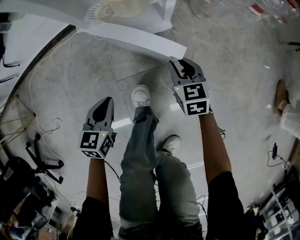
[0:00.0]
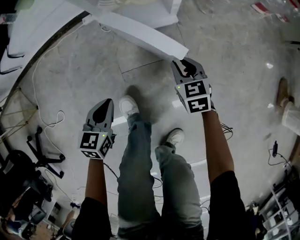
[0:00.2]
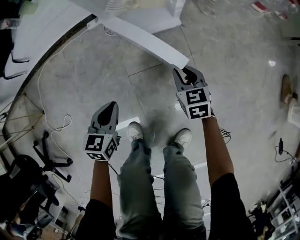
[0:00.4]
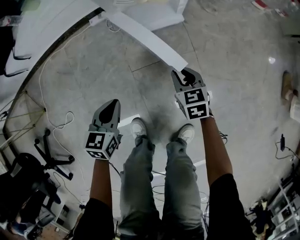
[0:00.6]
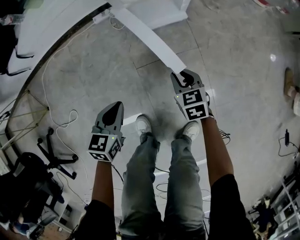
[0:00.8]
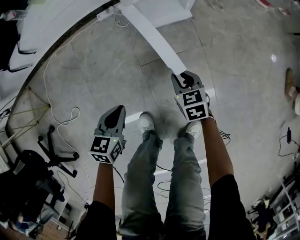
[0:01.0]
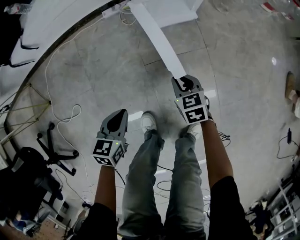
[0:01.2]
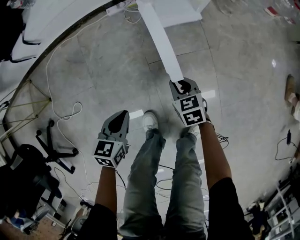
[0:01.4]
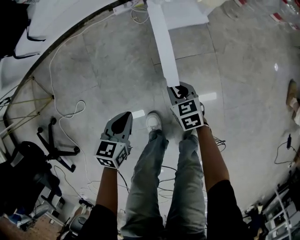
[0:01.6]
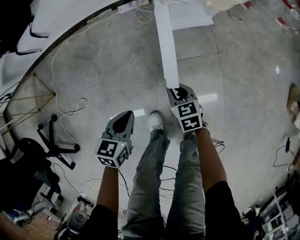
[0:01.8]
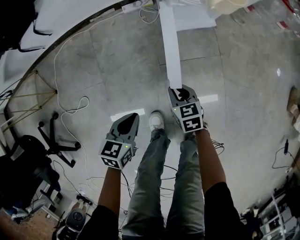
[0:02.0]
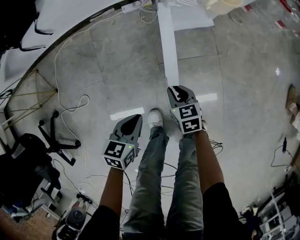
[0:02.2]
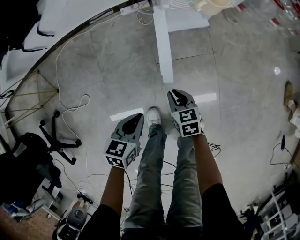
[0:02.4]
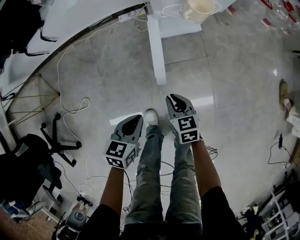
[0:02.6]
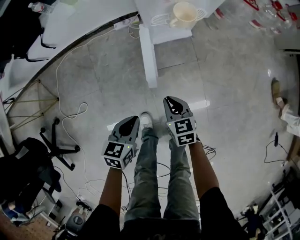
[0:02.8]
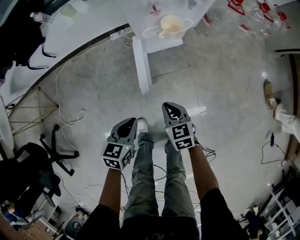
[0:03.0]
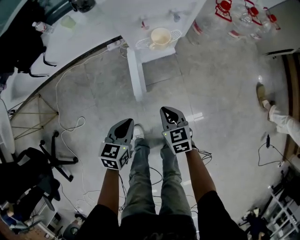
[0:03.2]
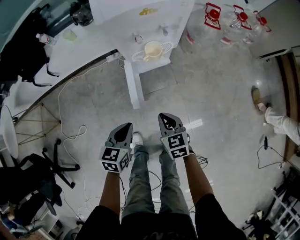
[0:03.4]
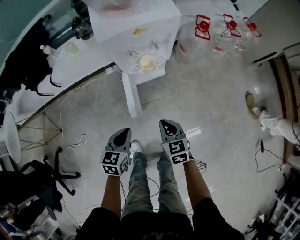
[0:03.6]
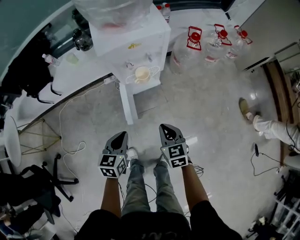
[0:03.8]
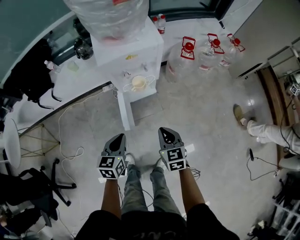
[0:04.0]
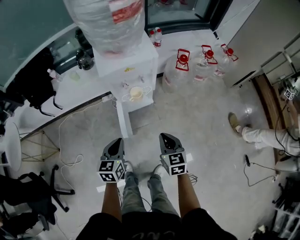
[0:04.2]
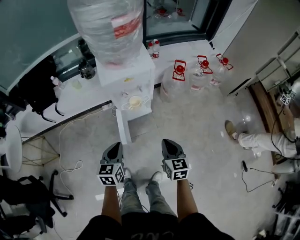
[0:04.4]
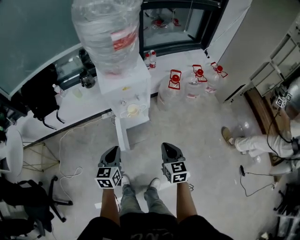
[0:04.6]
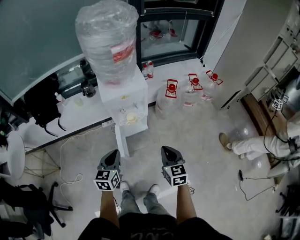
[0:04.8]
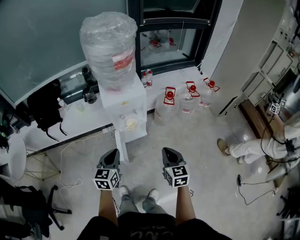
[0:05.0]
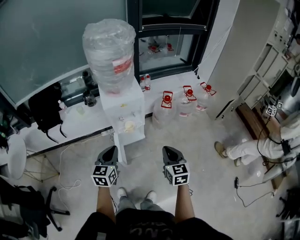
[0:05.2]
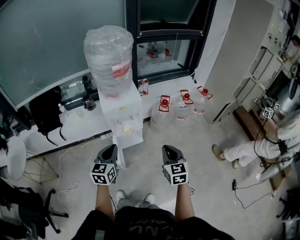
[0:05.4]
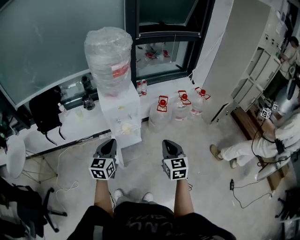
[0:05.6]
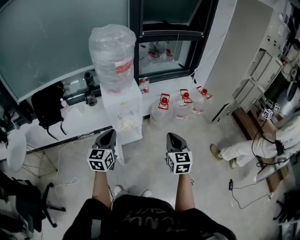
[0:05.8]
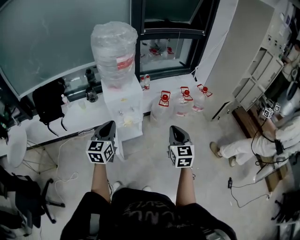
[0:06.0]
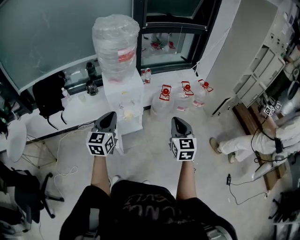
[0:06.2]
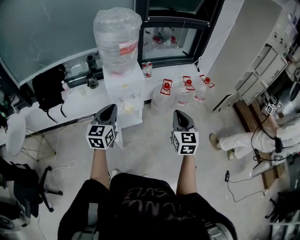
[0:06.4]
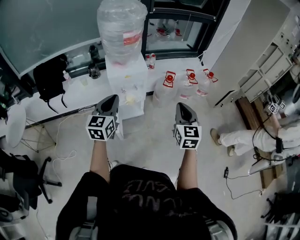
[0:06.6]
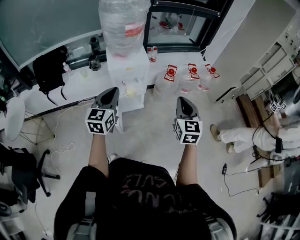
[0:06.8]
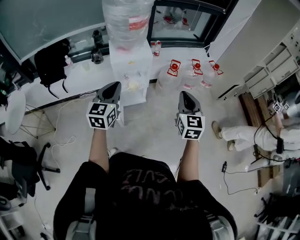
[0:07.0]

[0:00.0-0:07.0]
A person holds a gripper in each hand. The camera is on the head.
0.0 to 1.4 s: The left gripper heads backward and to the left, covering roughly 20 cm. Meanwhile the right gripper travels to the left and backward by some 25 cm.
1.4 to 2.8 s: The left gripper is displaced upward and to the right by some 15 cm; the right gripper heads upward, covering some 15 cm.
2.8 to 4.2 s: The right gripper is displaced upward and to the right by some 40 cm. The left gripper heads upward, covering approximately 30 cm.
4.2 to 5.6 s: The right gripper goes approximately 25 cm upward and to the right, while the left gripper shifts some 25 cm upward, and changes its angle by approximately 20 degrees.
5.6 to 7.0 s: The grippers both shift upward by roughly 5 cm.

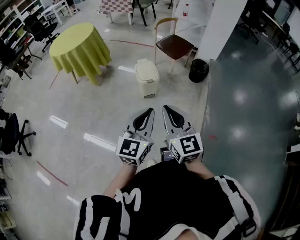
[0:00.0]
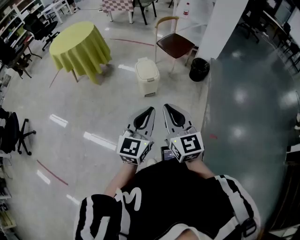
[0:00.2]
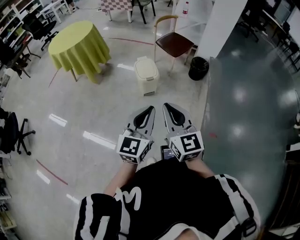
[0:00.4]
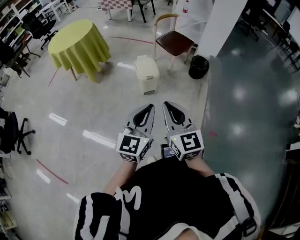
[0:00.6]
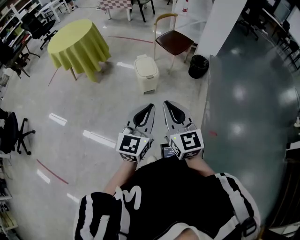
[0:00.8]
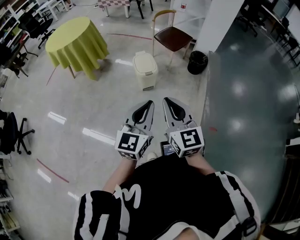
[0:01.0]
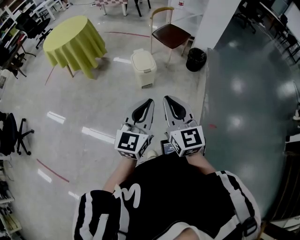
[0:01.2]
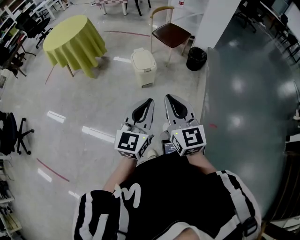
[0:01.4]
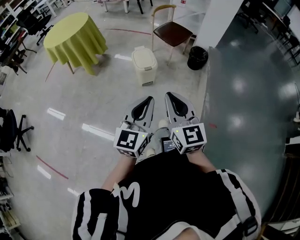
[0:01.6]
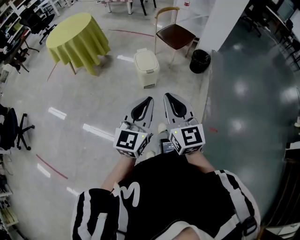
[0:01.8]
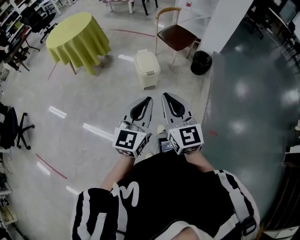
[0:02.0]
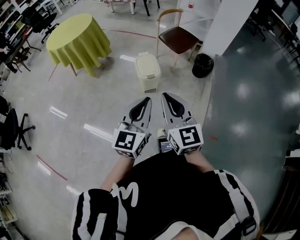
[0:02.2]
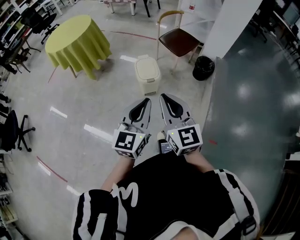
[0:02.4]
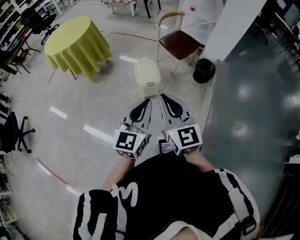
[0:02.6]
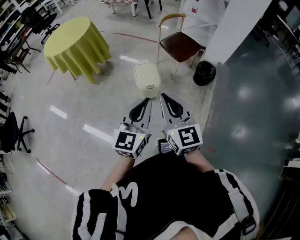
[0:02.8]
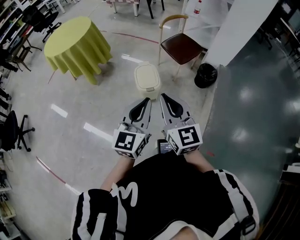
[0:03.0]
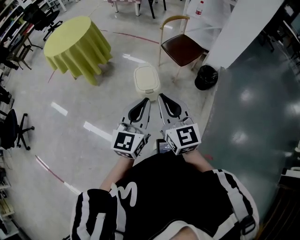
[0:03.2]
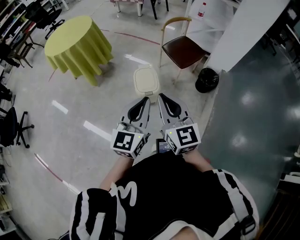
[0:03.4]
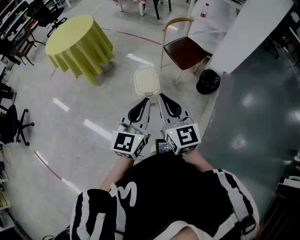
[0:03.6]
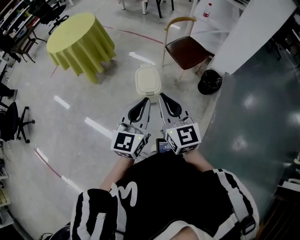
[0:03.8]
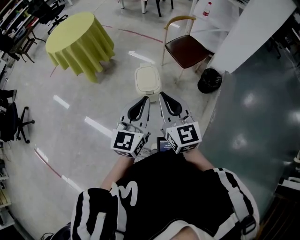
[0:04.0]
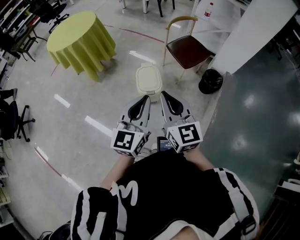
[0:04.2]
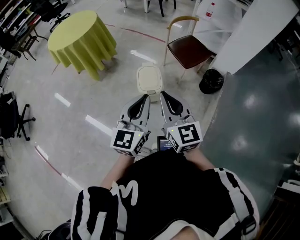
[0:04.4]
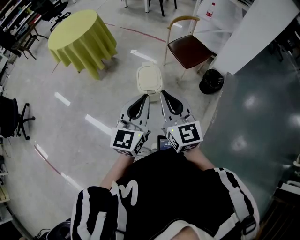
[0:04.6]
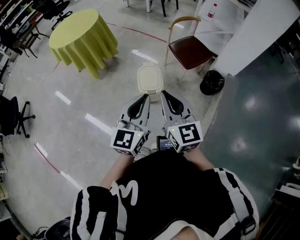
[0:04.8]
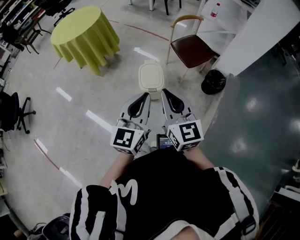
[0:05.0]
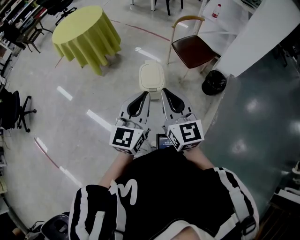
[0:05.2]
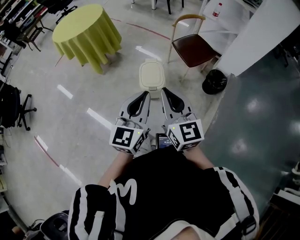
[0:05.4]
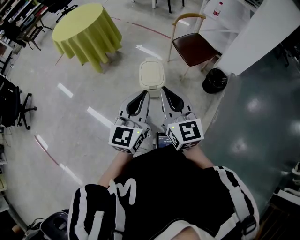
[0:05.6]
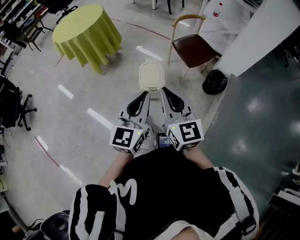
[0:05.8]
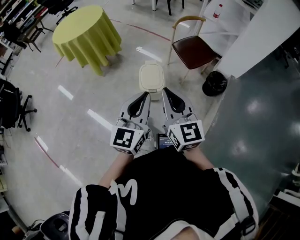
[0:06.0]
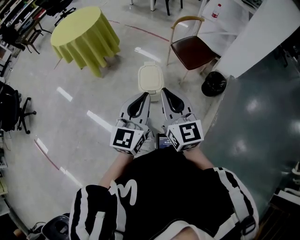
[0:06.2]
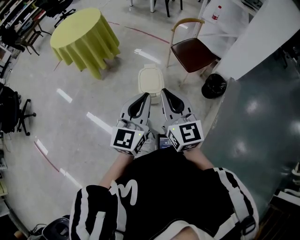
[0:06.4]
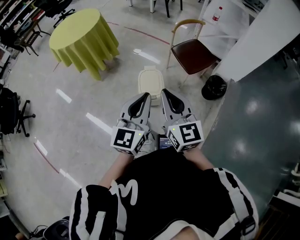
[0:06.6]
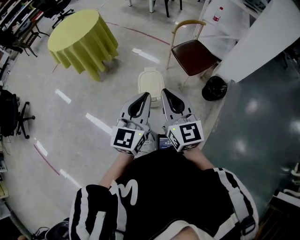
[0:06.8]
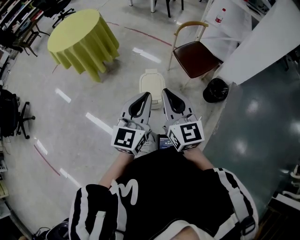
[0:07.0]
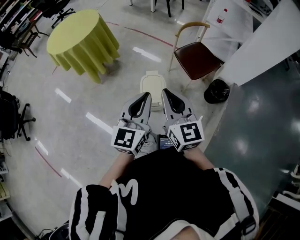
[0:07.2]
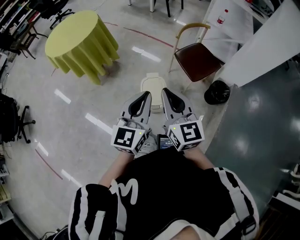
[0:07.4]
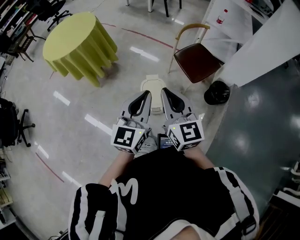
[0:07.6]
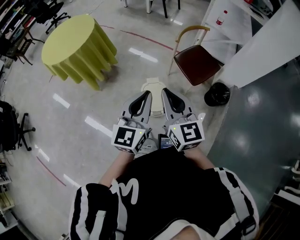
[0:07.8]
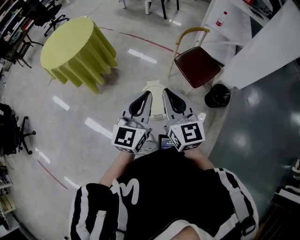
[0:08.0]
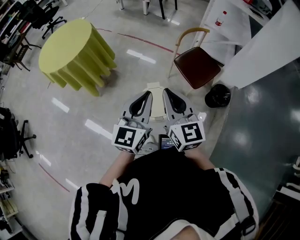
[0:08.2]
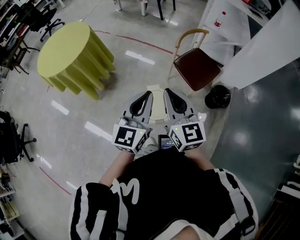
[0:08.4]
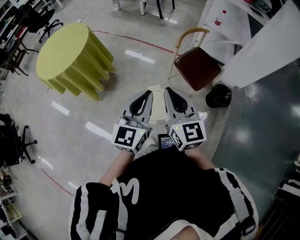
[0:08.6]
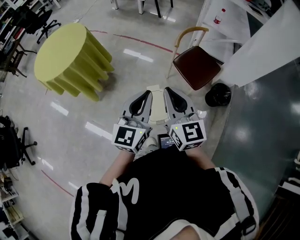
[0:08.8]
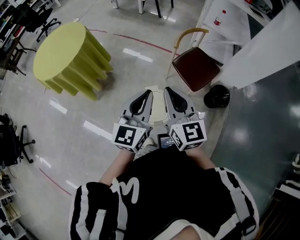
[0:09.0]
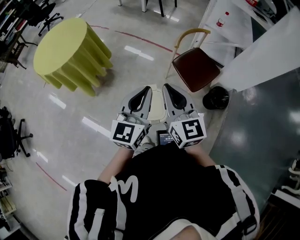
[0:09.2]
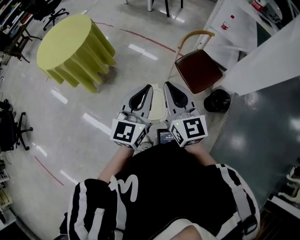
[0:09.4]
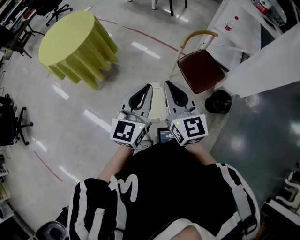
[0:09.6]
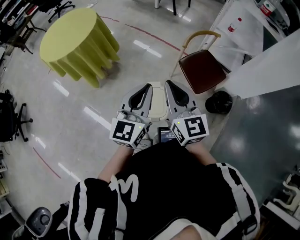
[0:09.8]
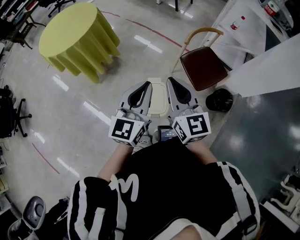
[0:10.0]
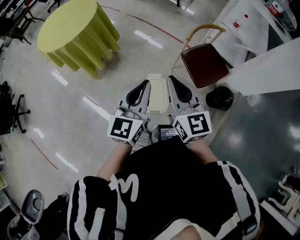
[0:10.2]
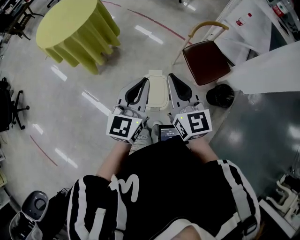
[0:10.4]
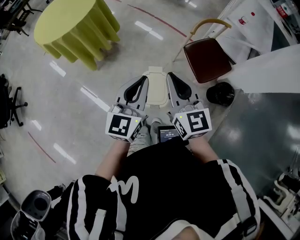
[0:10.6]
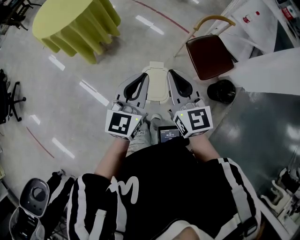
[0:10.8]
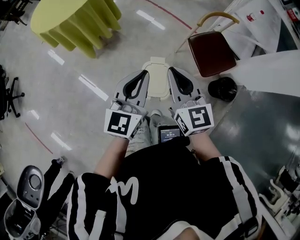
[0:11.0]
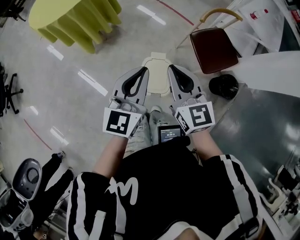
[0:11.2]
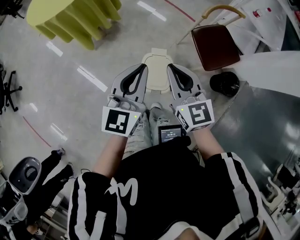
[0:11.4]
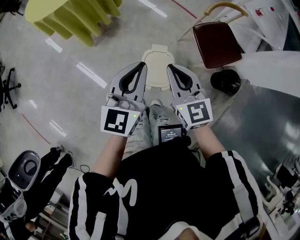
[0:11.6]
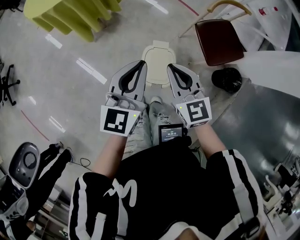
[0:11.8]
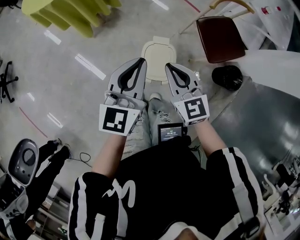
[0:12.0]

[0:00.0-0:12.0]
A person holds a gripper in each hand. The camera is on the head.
0.0 to 1.6 s: Both grippers stay put.
1.6 to 3.0 s: Both grippers move forward, approximately 25 cm.
3.0 to 4.4 s: Both grippers travel together forward, approximately 5 cm.
4.4 to 6.0 s: The grippers stay close to where they were, moving slightly.
6.0 to 7.6 s: The two grippers go approximately 20 cm forward.
7.6 to 9.0 s: Both grippers move forward, some 15 cm.
9.0 to 10.4 s: The grippers make only small movements.
10.4 to 12.0 s: The left gripper travels downward by roughly 10 cm. Meanwhile the right gripper goes approximately 20 cm downward, and changes its angle by some 20 degrees.

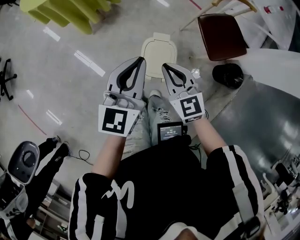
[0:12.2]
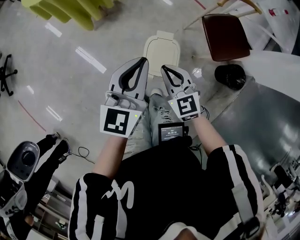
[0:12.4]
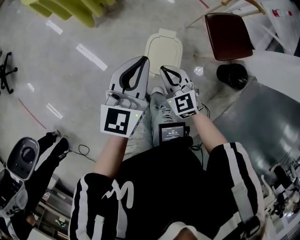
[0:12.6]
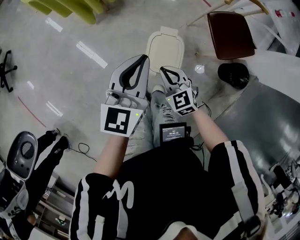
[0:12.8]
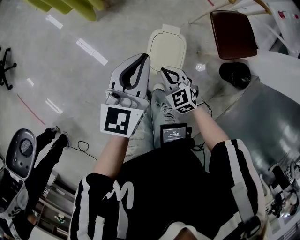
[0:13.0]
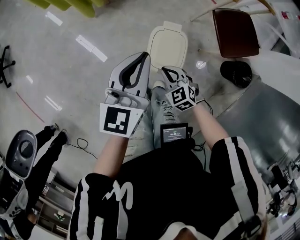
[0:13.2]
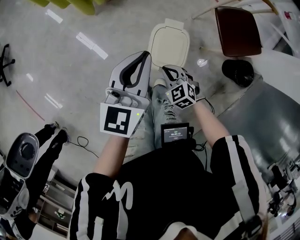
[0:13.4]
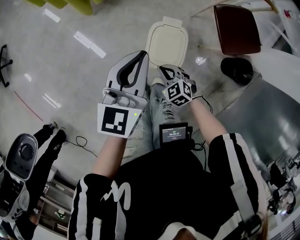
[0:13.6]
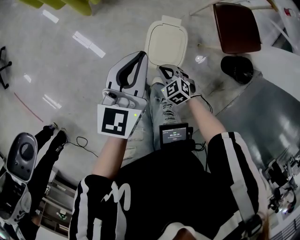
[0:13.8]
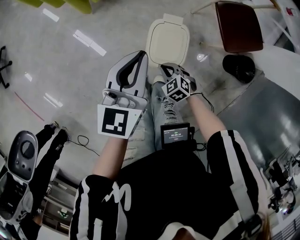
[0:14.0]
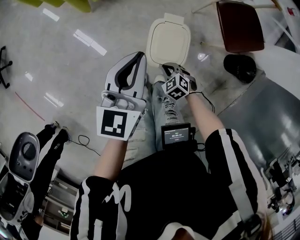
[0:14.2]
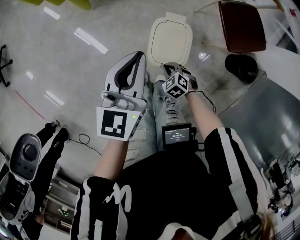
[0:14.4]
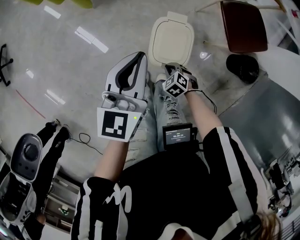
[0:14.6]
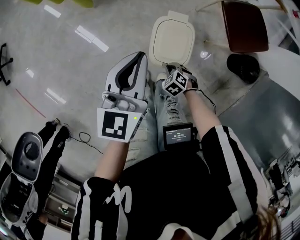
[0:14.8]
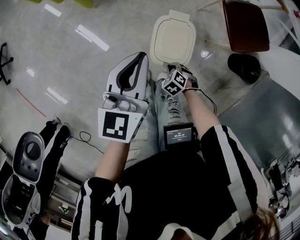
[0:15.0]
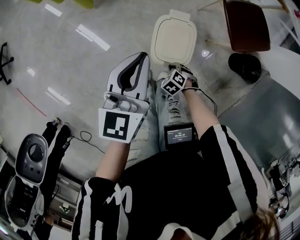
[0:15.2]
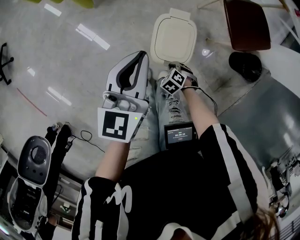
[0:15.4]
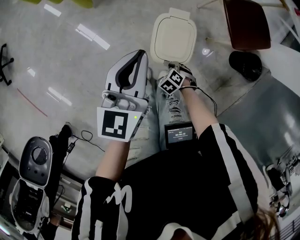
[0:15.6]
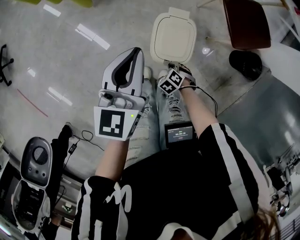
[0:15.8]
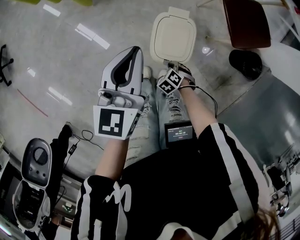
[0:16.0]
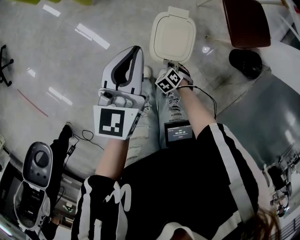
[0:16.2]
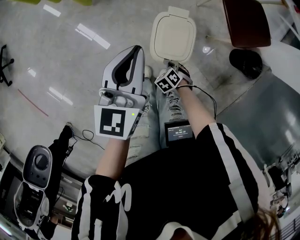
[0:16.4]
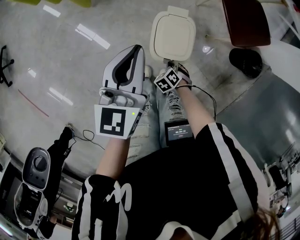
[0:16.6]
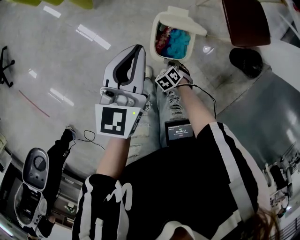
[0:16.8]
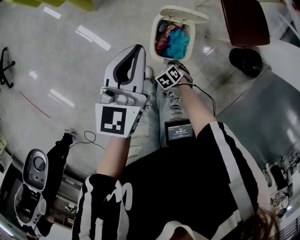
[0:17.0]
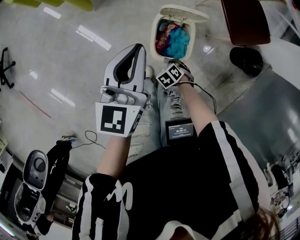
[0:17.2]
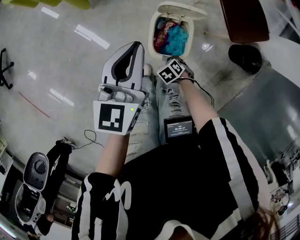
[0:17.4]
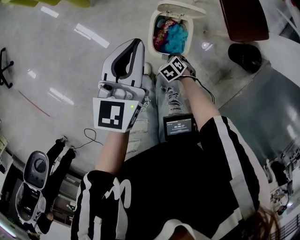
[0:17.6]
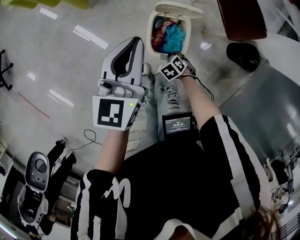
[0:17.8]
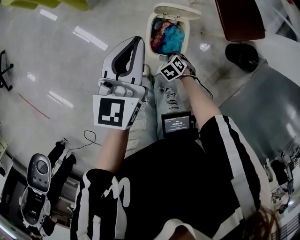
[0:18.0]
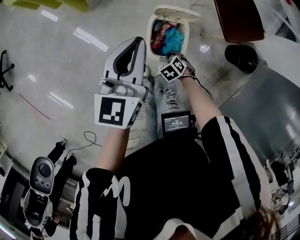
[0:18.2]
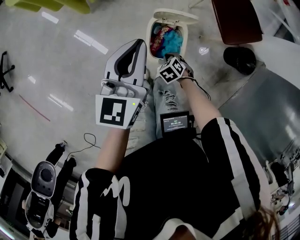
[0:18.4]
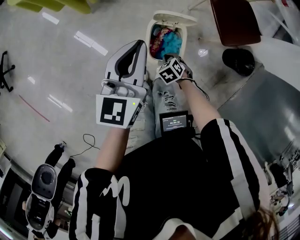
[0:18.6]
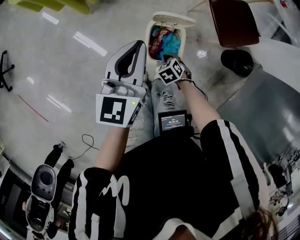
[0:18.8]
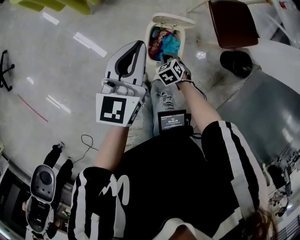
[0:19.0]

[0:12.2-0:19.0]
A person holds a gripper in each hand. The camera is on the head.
12.2 to 13.6 s: The right gripper goes about 25 cm downward, and changes its angle by approximately 30 degrees. The left gripper goes approximately 5 cm downward.
13.6 to 15.0 s: The right gripper shifts some 10 cm downward, and turns by roughly 20 degrees.
15.0 to 17.6 s: The grippers move only a little.
17.6 to 19.0 s: The left gripper goes roughly 5 cm upward; the right gripper shifts some 10 cm upward.
